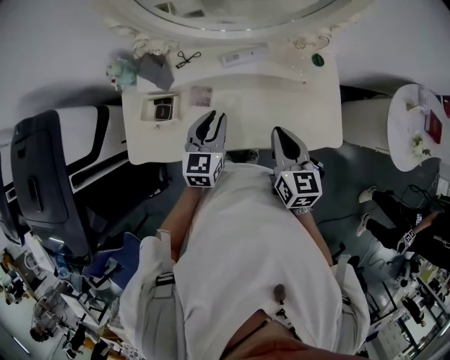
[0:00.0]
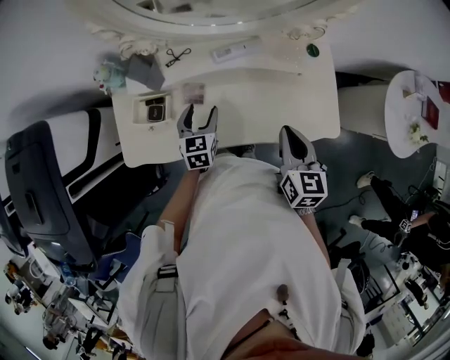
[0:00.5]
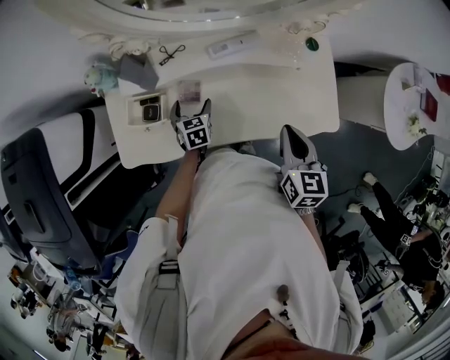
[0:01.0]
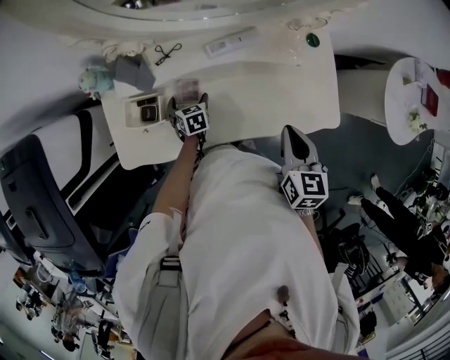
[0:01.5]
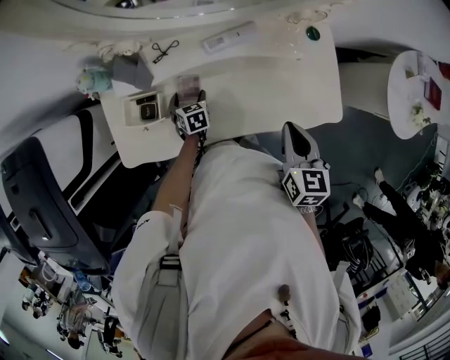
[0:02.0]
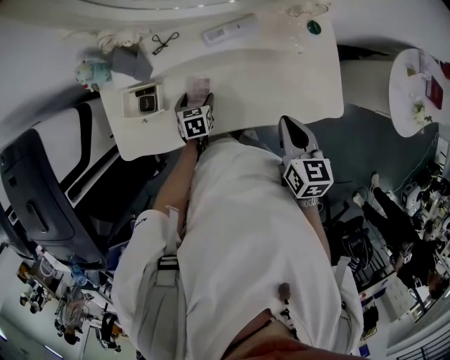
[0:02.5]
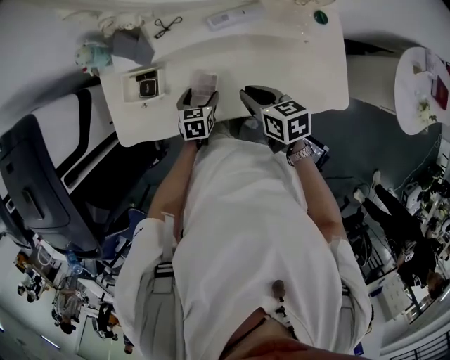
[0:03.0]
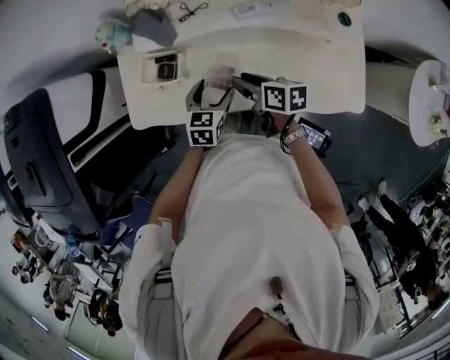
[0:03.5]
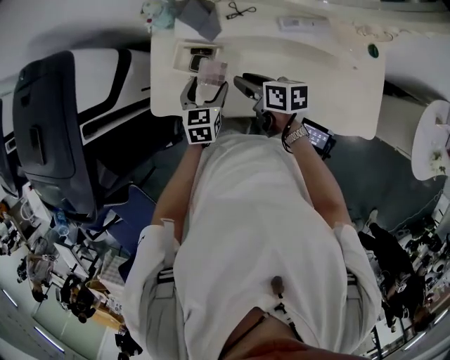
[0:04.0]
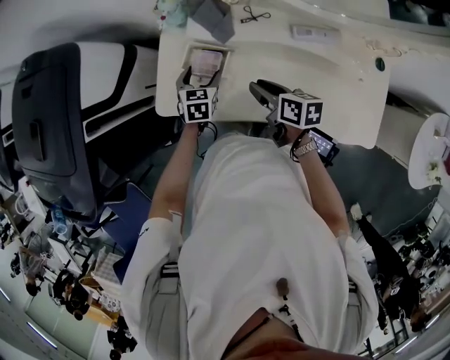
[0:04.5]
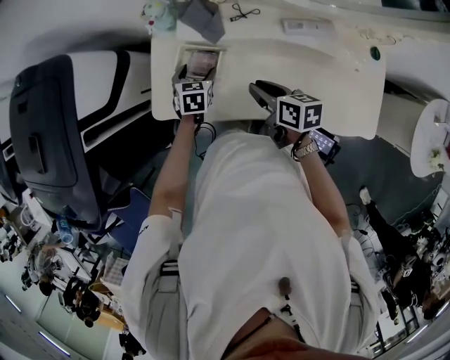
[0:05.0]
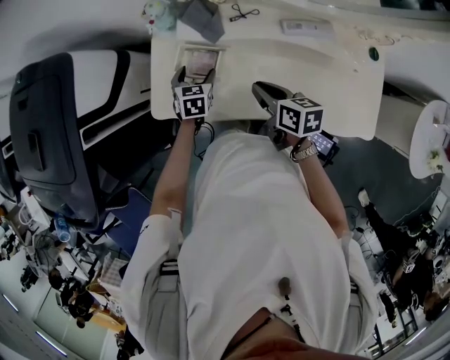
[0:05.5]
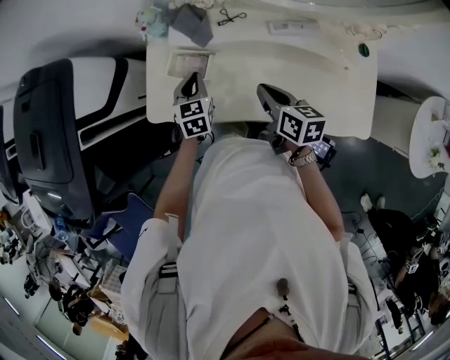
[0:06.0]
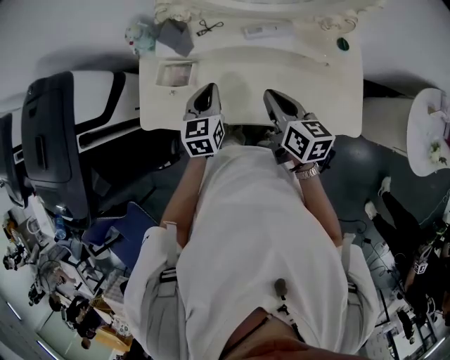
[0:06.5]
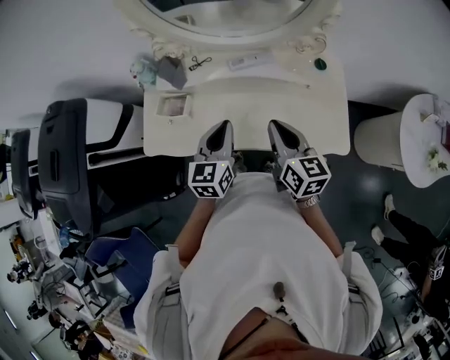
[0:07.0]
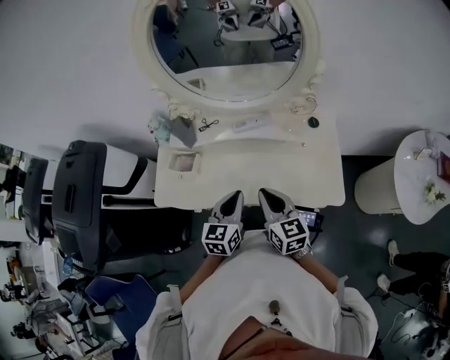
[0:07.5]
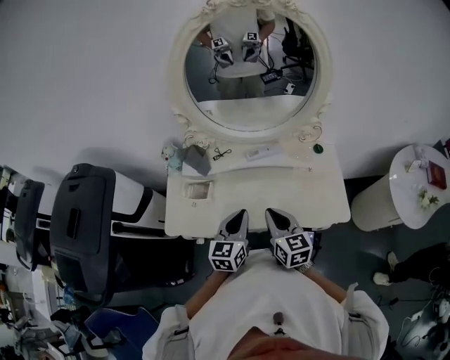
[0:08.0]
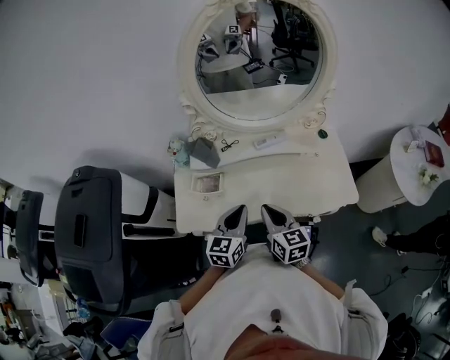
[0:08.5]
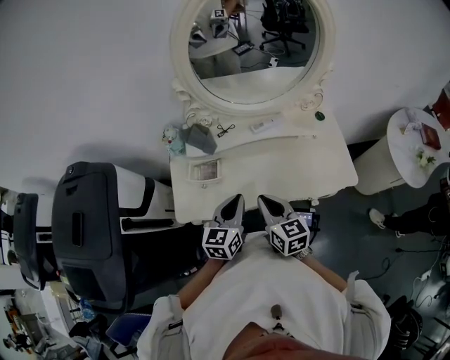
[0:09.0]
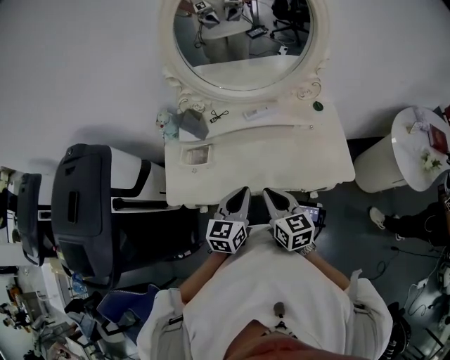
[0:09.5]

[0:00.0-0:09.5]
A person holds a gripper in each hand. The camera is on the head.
0:00.0 to 0:02.0: The left gripper is displaced downward by approximately 25 cm, angles its fingers downward, by roughly 30 degrees, and opens up.
0:02.0 to 0:04.0: The right gripper changes place by some 30 cm, swivels about 50 degrees, and opens. The left gripper moves upward, approximately 15 cm.
0:04.0 to 0:05.5: The right gripper closes up. Meanwhile the left gripper goes roughly 10 cm forward and downward.
0:05.5 to 0:07.5: Both grippers move to the right, backward and upward, approximately 35 cm. The right gripper rotates about 40 degrees. Meanwhile the left gripper changes its angle by some 30 degrees, and closes up.
0:07.5 to 0:09.5: The right gripper goes roughly 10 cm to the left and backward, while the left gripper heads to the left, covering about 10 cm.

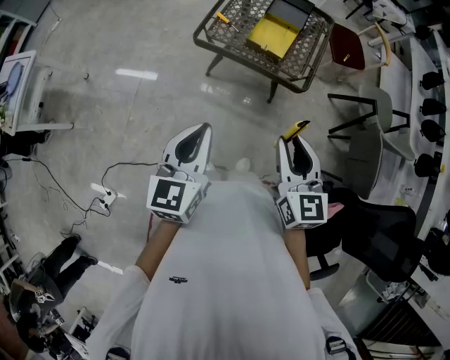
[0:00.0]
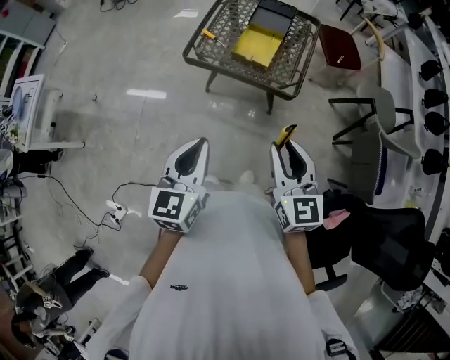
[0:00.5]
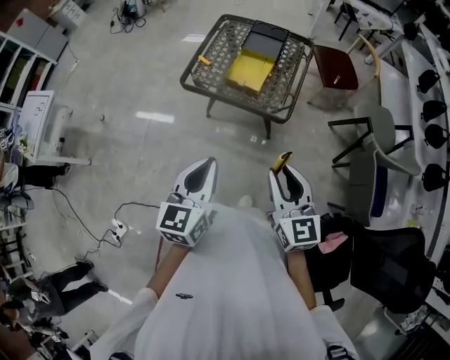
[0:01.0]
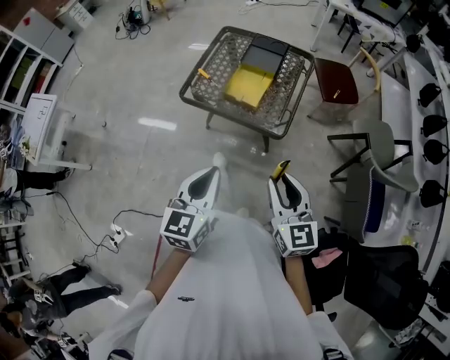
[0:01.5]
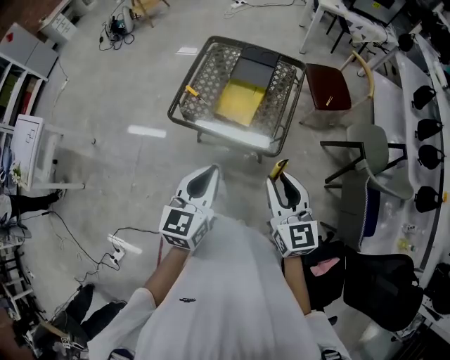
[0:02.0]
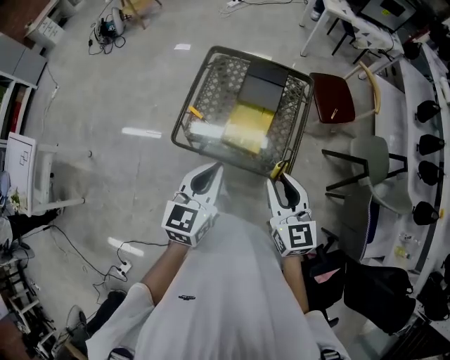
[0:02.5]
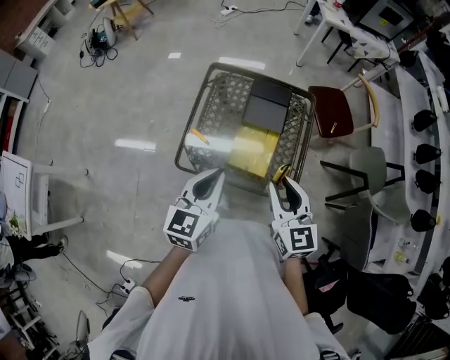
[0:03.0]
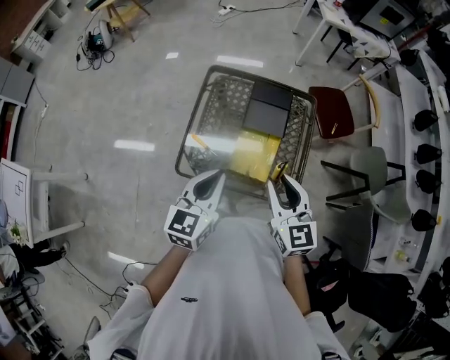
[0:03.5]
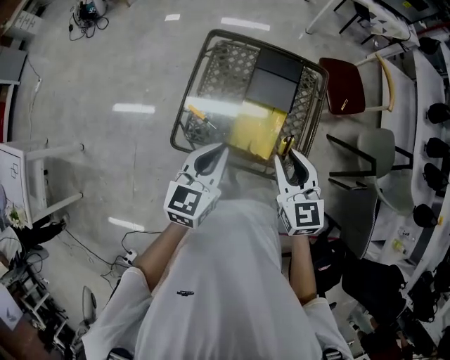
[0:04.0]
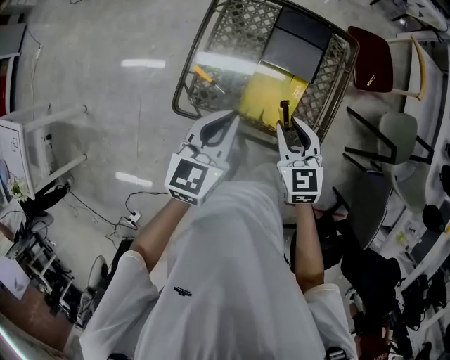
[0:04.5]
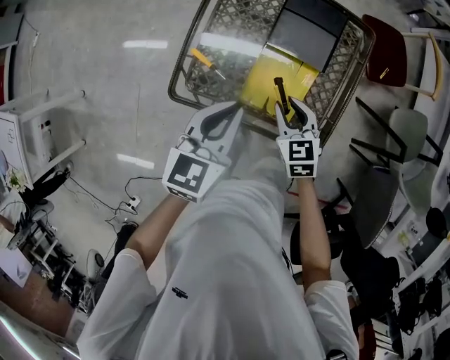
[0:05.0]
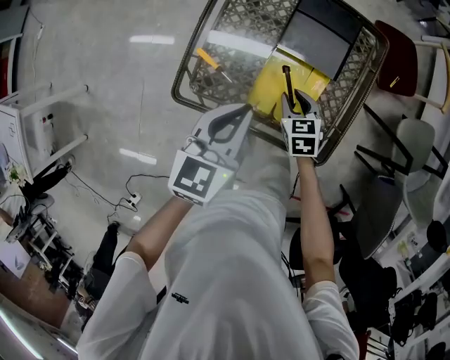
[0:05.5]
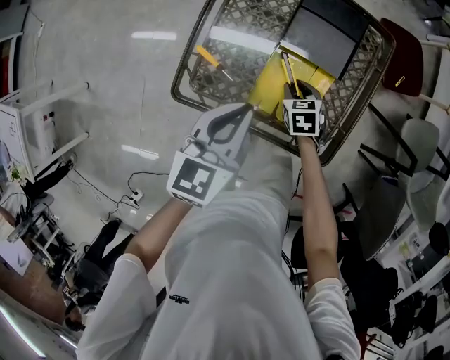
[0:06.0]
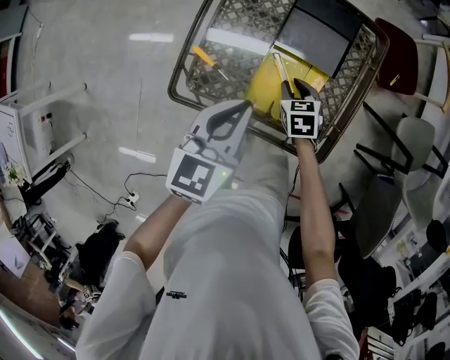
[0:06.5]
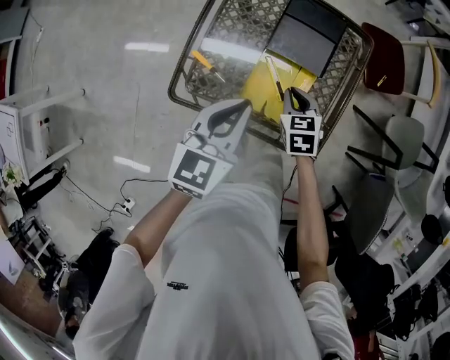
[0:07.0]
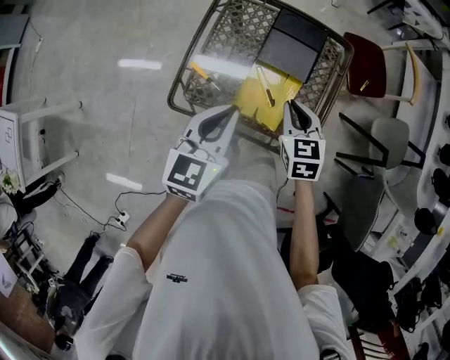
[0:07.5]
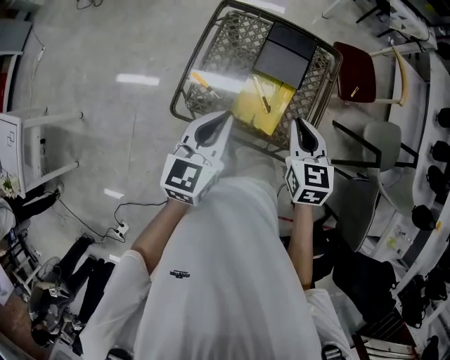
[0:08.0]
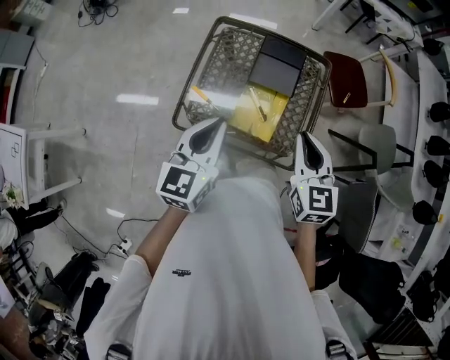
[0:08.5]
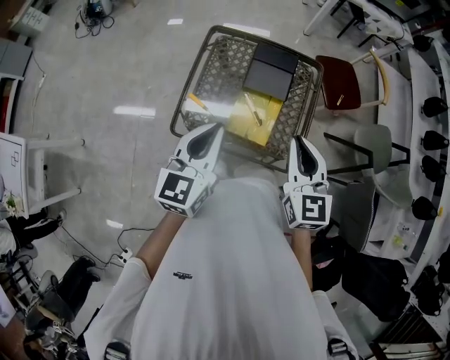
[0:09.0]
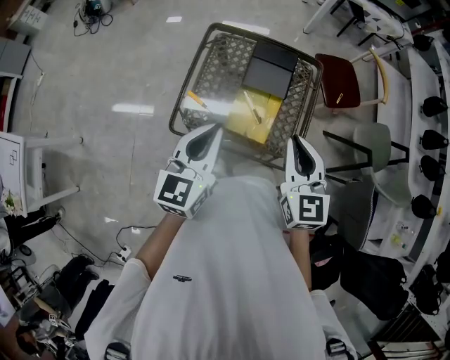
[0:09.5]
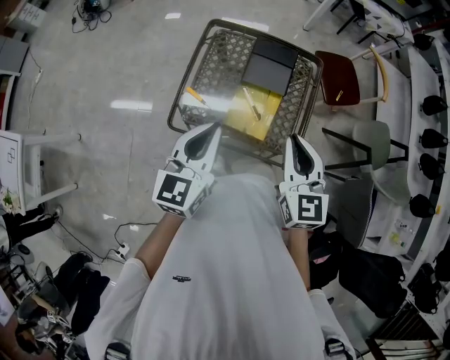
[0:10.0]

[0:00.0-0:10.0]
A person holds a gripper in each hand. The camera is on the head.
0:00.0 to 0:02.0: The grippers both shift to the right and forward by about 20 cm.
0:02.0 to 0:04.0: Both grippers travel together forward and to the left, roughly 30 cm.
0:04.0 to 0:06.0: The right gripper is displaced downward by roughly 35 cm, and tilts its fingers about 40 degrees downward. The left gripper goes about 10 cm downward.
0:06.0 to 0:08.0: The left gripper moves upward, roughly 15 cm; the right gripper is displaced upward by roughly 30 cm, turns by about 30 degrees, and closes.
0:08.0 to 0:10.0: The right gripper shifts approximately 10 cm upward and backward, while the left gripper moves upward, roughly 5 cm.

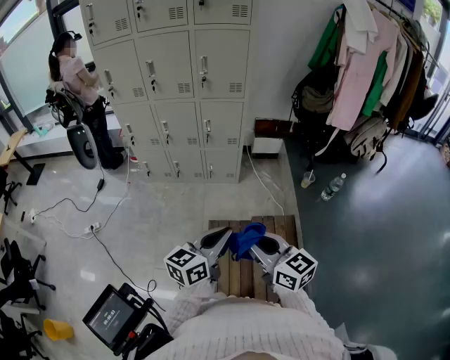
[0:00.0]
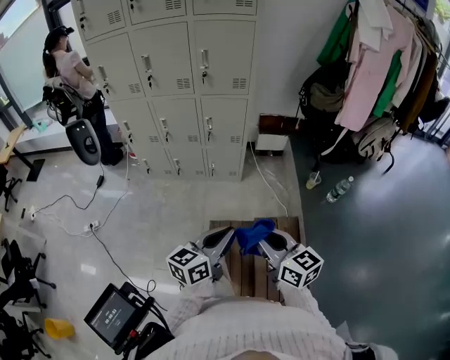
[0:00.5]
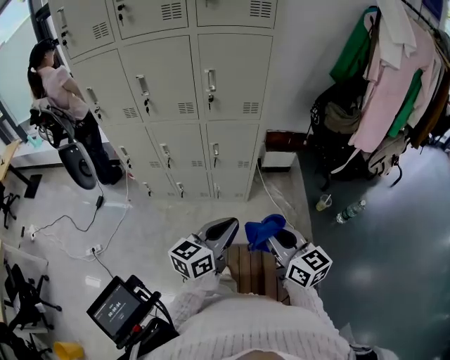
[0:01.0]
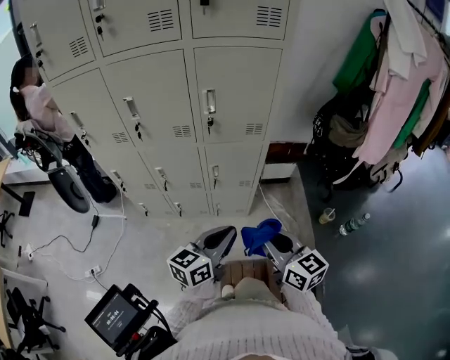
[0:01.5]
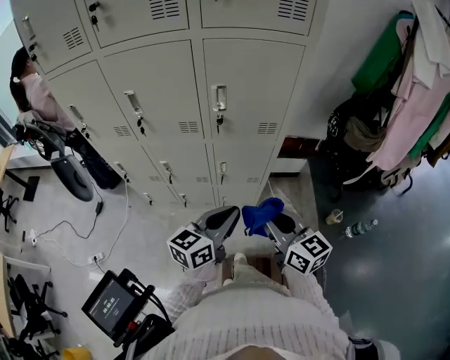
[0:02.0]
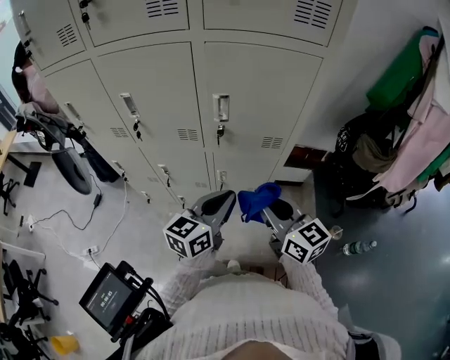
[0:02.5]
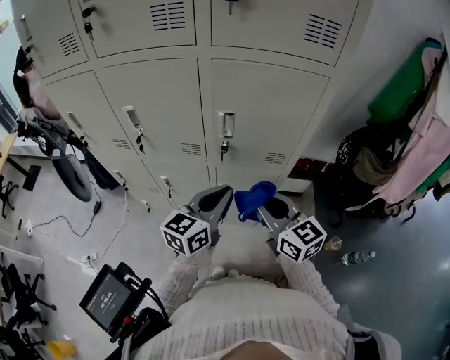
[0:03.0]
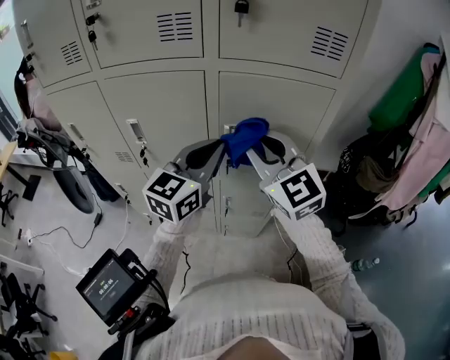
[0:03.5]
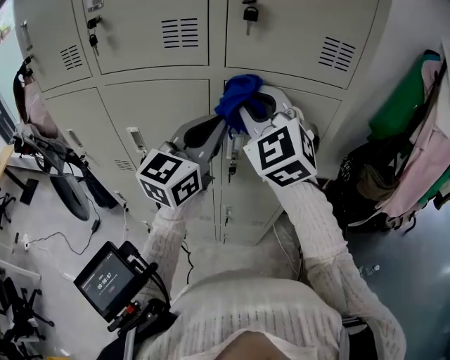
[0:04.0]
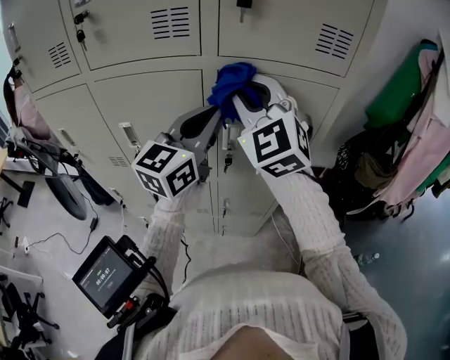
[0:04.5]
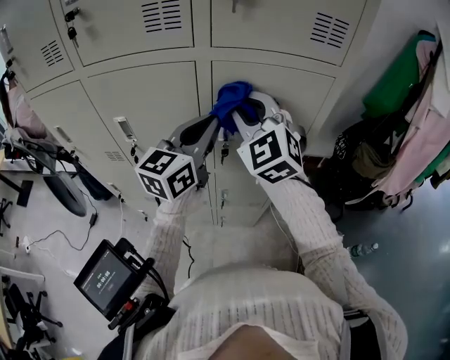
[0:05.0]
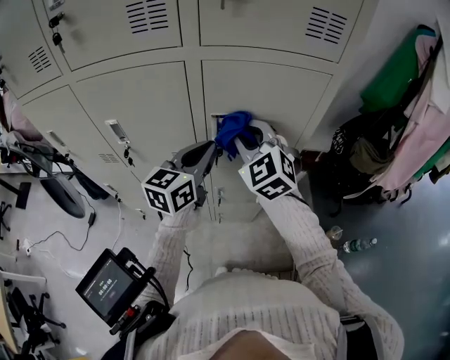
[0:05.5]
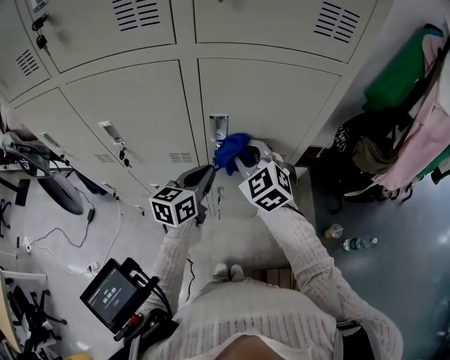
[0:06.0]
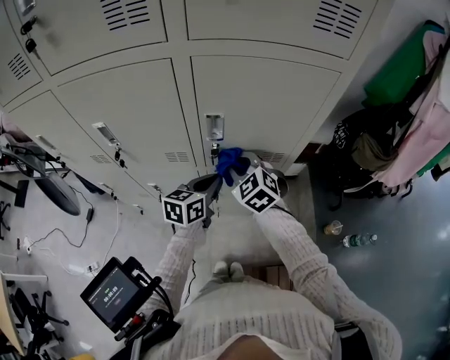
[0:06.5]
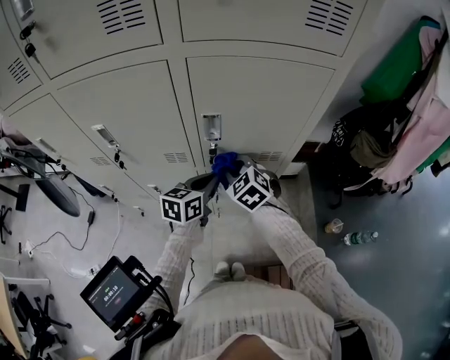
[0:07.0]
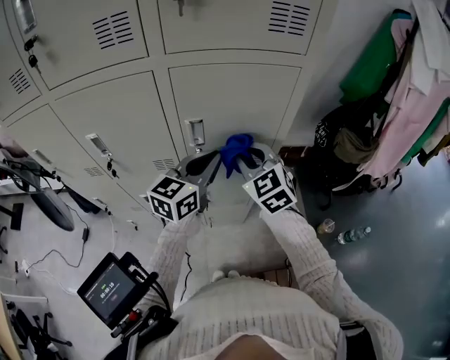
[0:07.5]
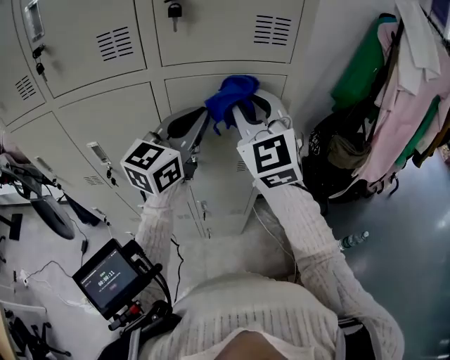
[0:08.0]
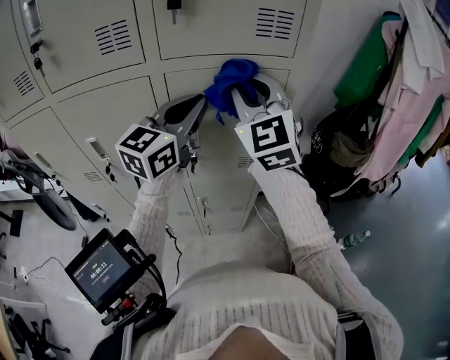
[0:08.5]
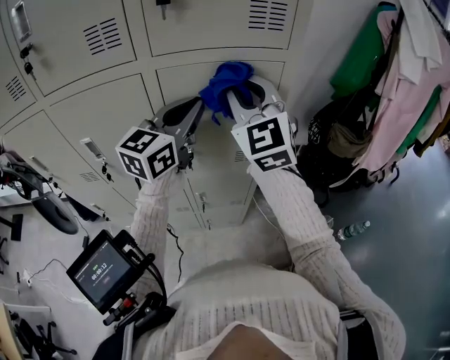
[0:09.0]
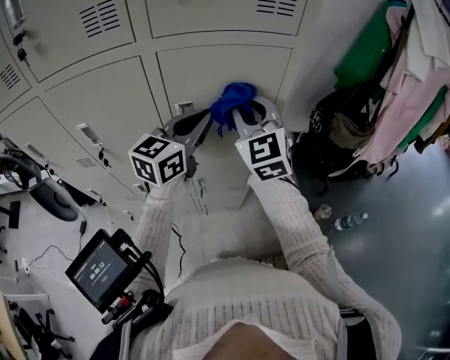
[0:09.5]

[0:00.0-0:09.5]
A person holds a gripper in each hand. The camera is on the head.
0:00.0 to 0:02.0: Both grippers are carried forward, about 50 cm.
0:02.0 to 0:04.0: Both grippers move forward and upward, about 40 cm. The left gripper changes its angle by about 40 degrees, while the right gripper twists about 70 degrees counterclockwise, seen from behind.
0:04.0 to 0:05.5: The grippers both shift downward by about 15 cm. The left gripper rotates approximately 20 degrees.
0:05.5 to 0:07.5: Both grippers move to the right, about 5 cm. The left gripper moves about 15 cm downward and comes back, while the right gripper goes downward and returns, approximately 20 cm each way.
0:07.5 to 0:09.5: The left gripper is displaced upward by approximately 5 cm. Meanwhile the right gripper shifts roughly 10 cm upward.
